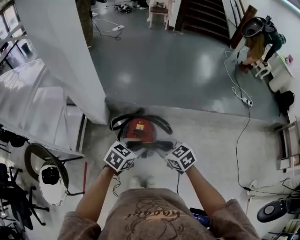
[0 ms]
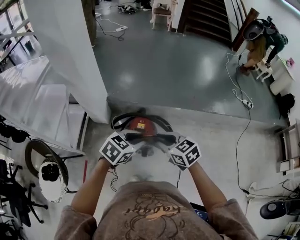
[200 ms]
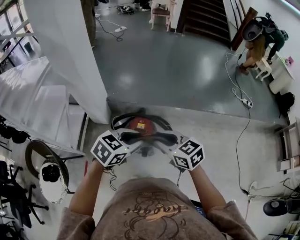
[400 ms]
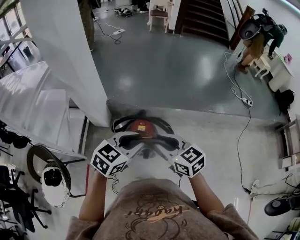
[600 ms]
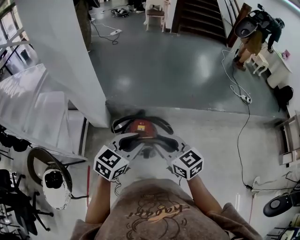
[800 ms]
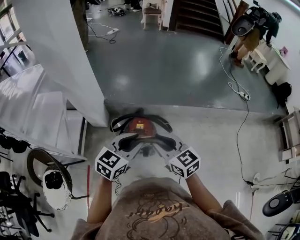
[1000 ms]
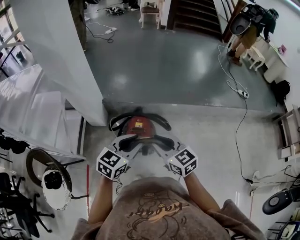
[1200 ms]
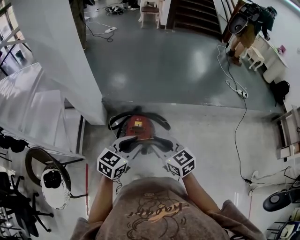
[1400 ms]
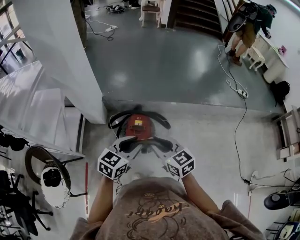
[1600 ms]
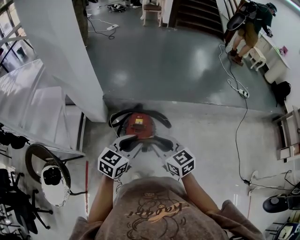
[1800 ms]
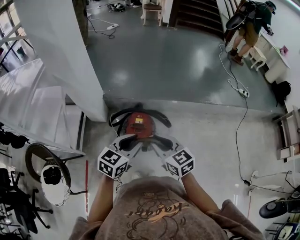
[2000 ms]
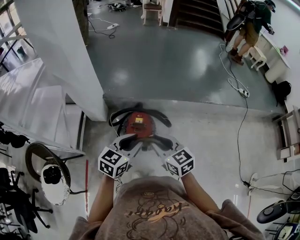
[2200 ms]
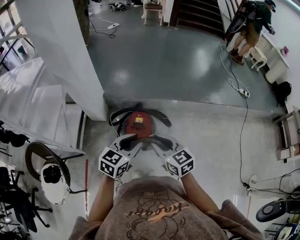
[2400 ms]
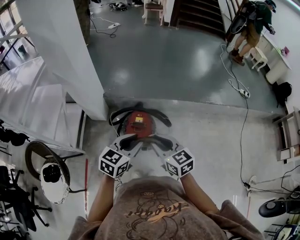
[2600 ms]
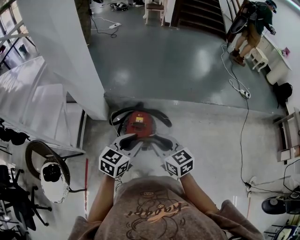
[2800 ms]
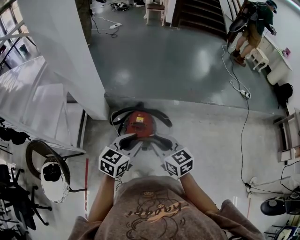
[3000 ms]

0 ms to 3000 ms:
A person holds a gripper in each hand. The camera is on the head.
0 ms to 1600 ms: The grippers both shift upward by some 5 cm.
1600 ms to 3000 ms: The grippers move only a little.

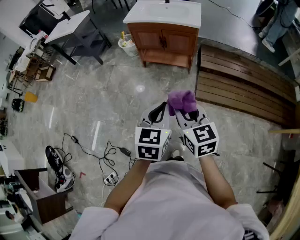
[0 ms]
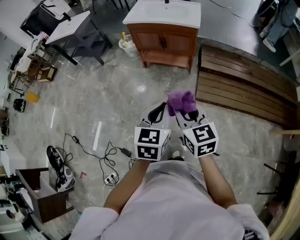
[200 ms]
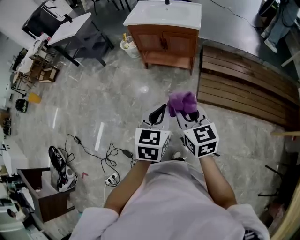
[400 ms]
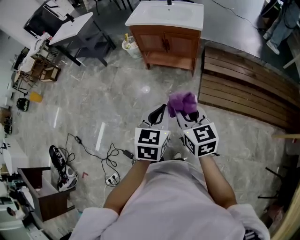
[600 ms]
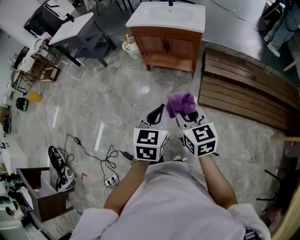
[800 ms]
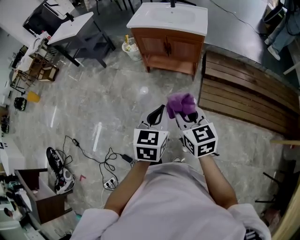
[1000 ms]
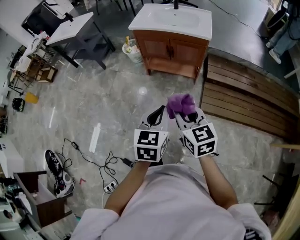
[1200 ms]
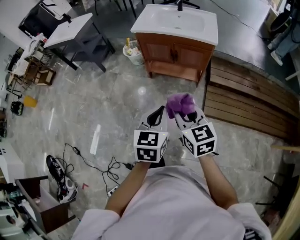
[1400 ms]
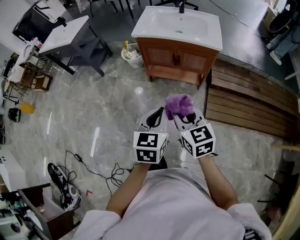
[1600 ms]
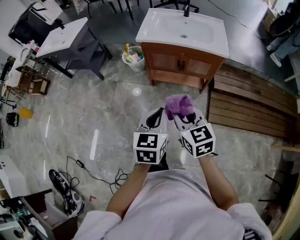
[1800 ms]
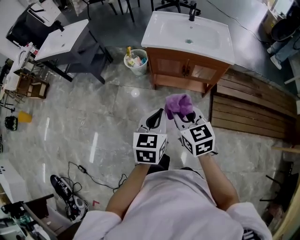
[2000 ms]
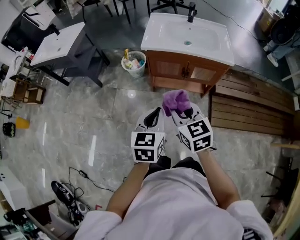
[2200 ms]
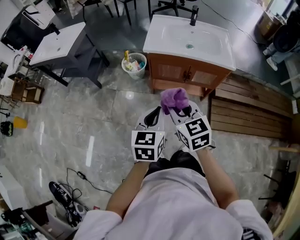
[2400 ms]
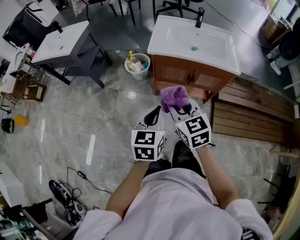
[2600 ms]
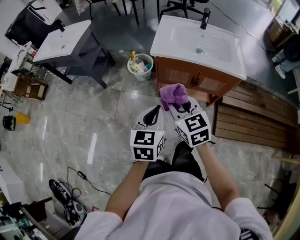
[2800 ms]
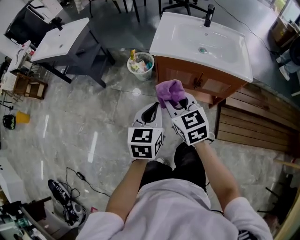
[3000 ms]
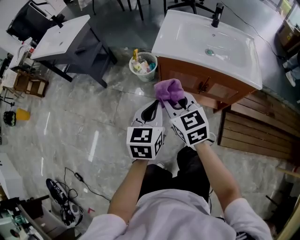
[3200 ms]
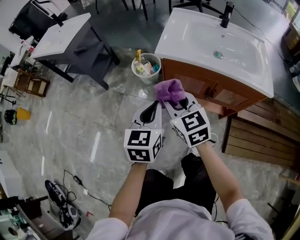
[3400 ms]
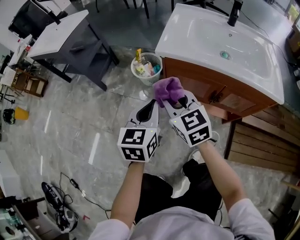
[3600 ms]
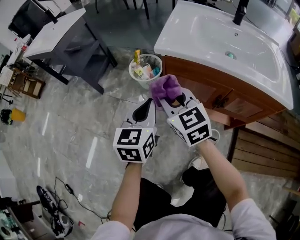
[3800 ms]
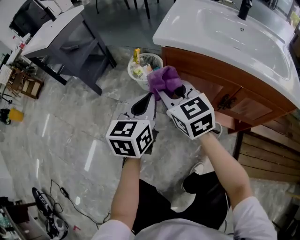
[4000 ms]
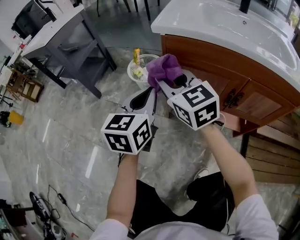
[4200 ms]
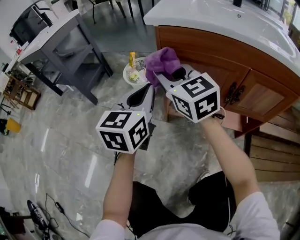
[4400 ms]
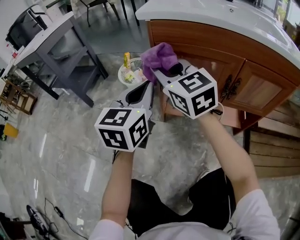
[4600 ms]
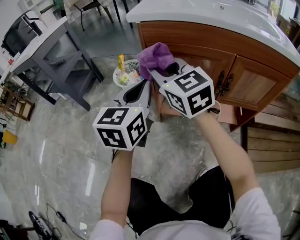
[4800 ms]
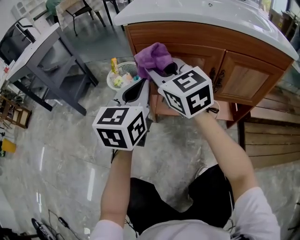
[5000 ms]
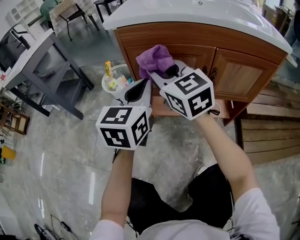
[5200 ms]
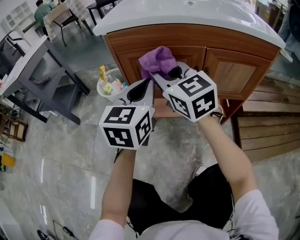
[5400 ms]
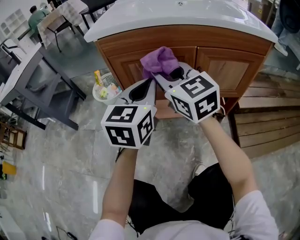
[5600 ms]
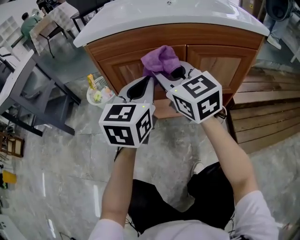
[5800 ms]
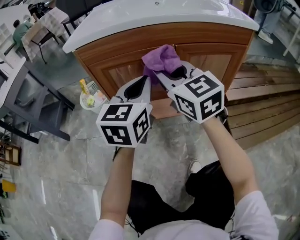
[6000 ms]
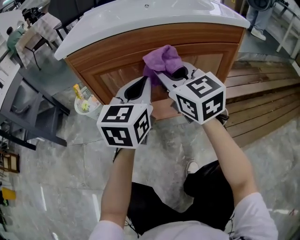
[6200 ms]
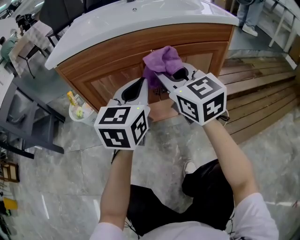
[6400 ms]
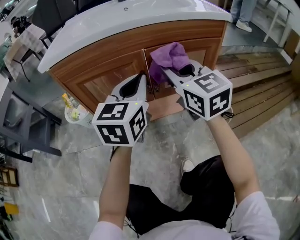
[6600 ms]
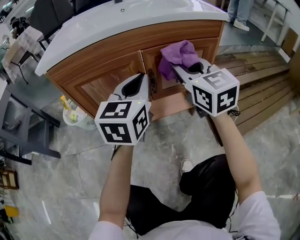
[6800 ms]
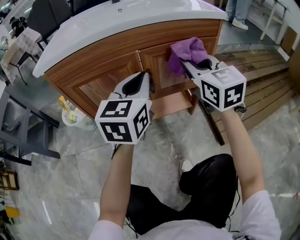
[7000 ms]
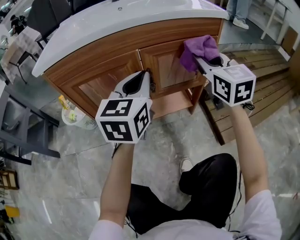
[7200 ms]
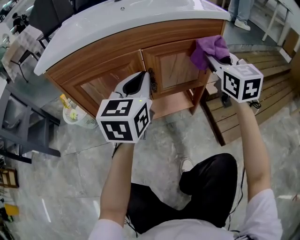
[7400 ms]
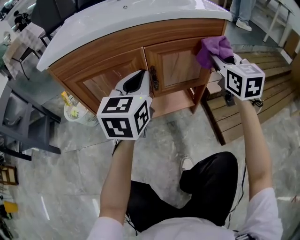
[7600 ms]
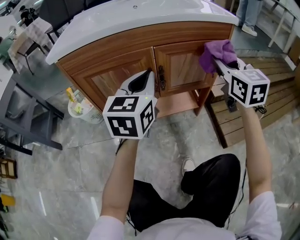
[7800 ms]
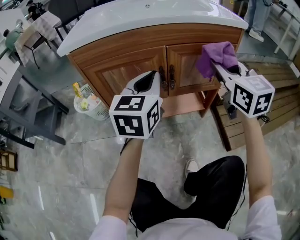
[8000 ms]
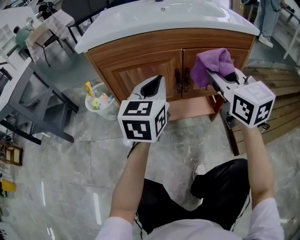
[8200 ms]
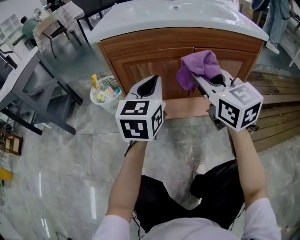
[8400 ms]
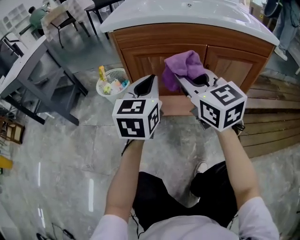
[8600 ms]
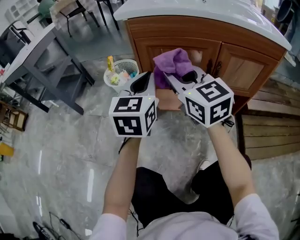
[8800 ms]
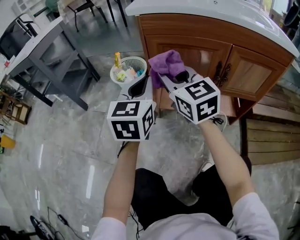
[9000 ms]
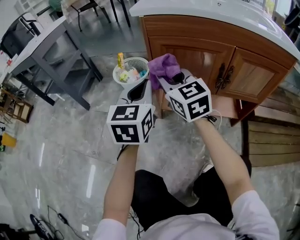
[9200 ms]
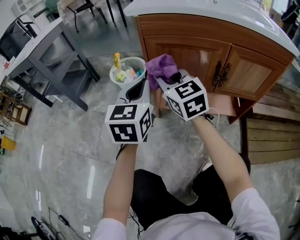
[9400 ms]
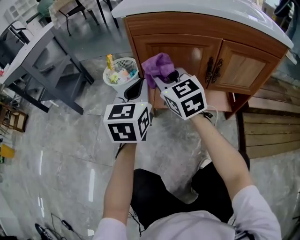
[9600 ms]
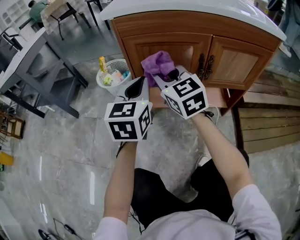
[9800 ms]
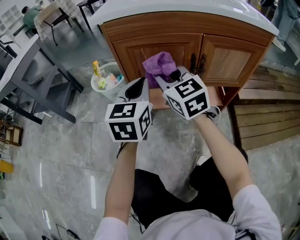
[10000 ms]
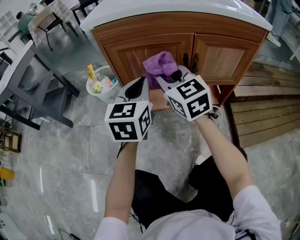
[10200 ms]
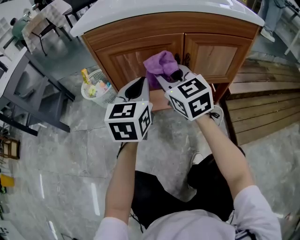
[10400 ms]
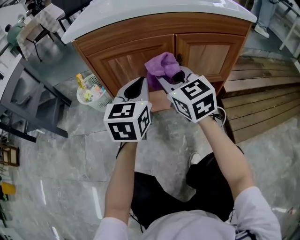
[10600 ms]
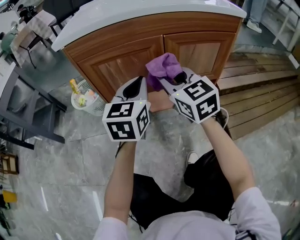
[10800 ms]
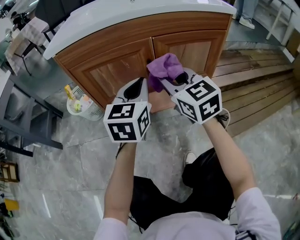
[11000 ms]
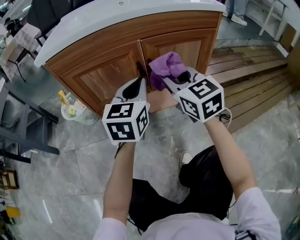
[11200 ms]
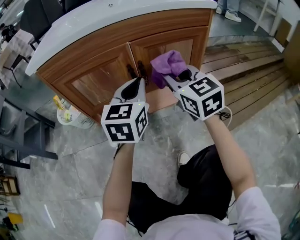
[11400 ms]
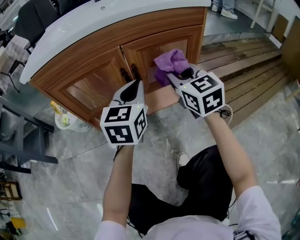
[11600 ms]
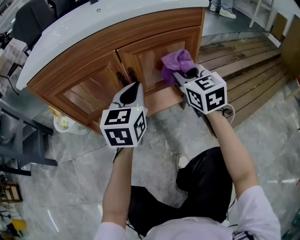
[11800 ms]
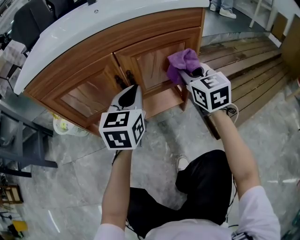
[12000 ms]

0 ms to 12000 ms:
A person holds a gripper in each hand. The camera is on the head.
0 ms to 1600 ms: The grippers both shift forward and to the left by approximately 25 cm.
1600 ms to 3000 ms: Both grippers move forward and to the left, approximately 30 cm.
3000 ms to 4400 ms: Both grippers travel together downward and forward, some 35 cm.
4400 ms to 6000 ms: Both grippers travel together to the right, approximately 20 cm. The right gripper changes its angle by some 20 degrees. Meanwhile the left gripper rotates some 20 degrees.
6000 ms to 7600 ms: The left gripper moves to the right, about 10 cm; the right gripper heads to the right, covering approximately 30 cm, and changes its angle by about 30 degrees.
7600 ms to 9000 ms: The left gripper shifts by some 25 cm, and rotates about 30 degrees. The right gripper shifts by about 40 cm, and changes its angle by roughly 40 degrees.
9000 ms to 10400 ms: Both grippers travel together to the right, some 10 cm.
10400 ms to 12000 ms: The left gripper heads to the right, covering approximately 15 cm. The right gripper heads to the right, covering approximately 30 cm, and changes its angle by some 30 degrees.

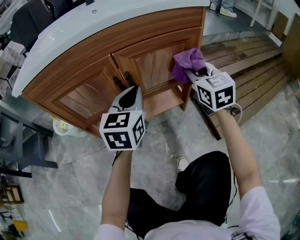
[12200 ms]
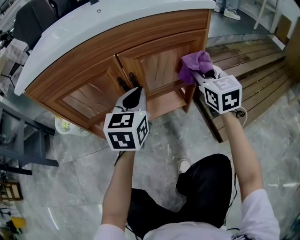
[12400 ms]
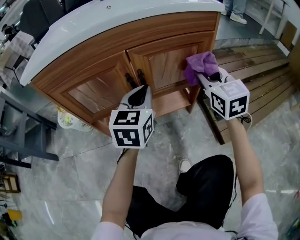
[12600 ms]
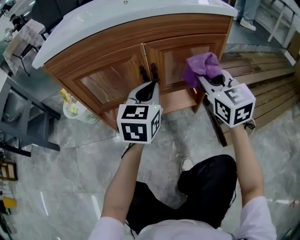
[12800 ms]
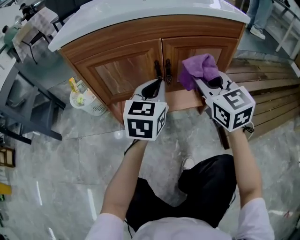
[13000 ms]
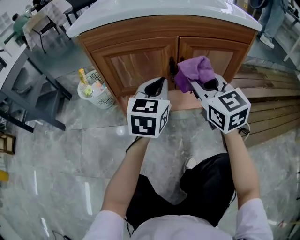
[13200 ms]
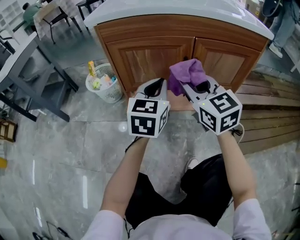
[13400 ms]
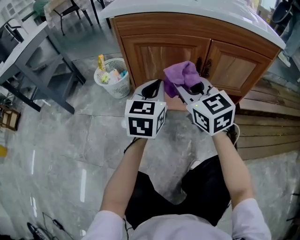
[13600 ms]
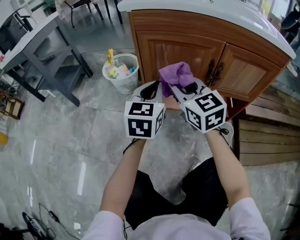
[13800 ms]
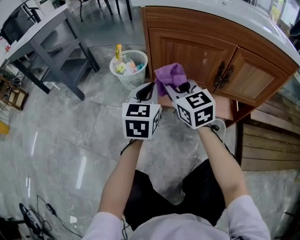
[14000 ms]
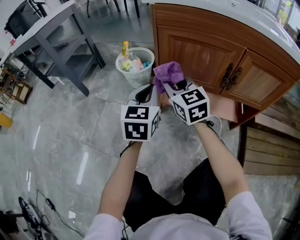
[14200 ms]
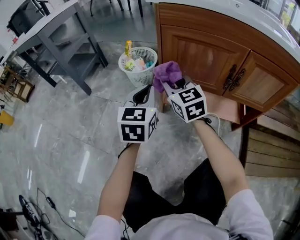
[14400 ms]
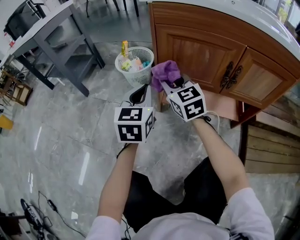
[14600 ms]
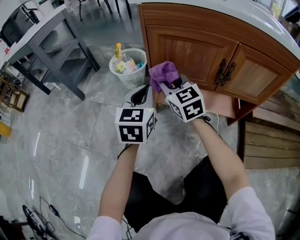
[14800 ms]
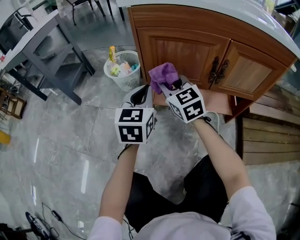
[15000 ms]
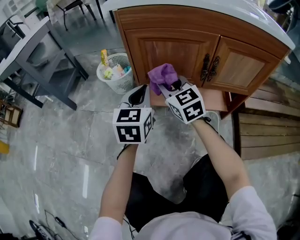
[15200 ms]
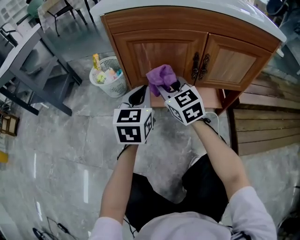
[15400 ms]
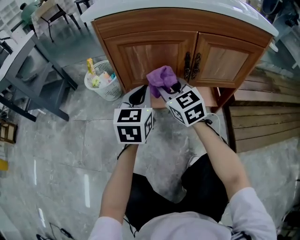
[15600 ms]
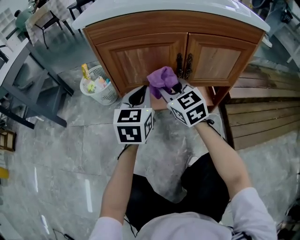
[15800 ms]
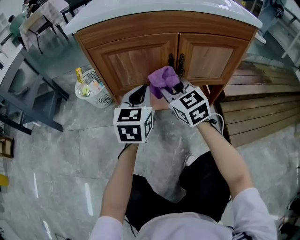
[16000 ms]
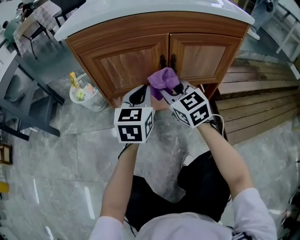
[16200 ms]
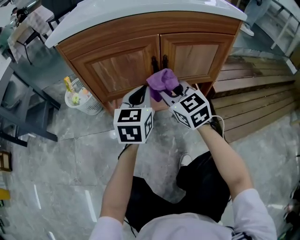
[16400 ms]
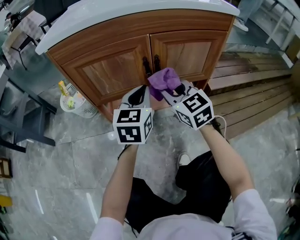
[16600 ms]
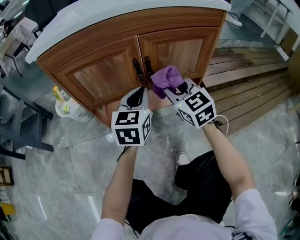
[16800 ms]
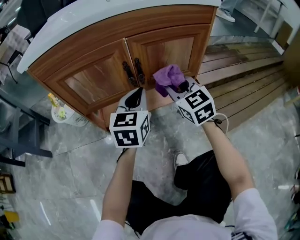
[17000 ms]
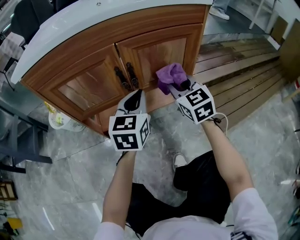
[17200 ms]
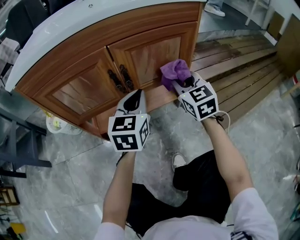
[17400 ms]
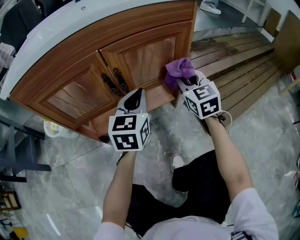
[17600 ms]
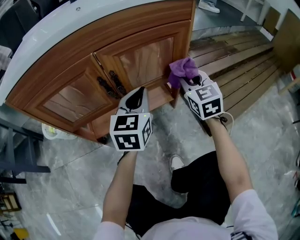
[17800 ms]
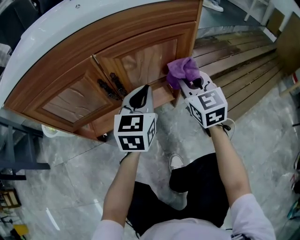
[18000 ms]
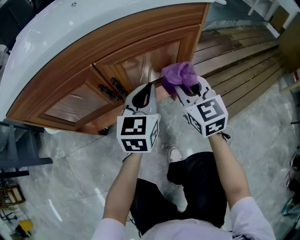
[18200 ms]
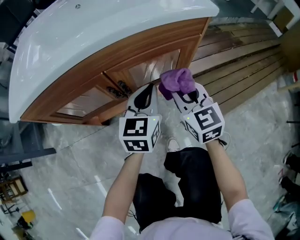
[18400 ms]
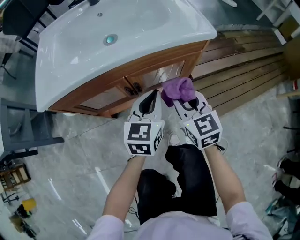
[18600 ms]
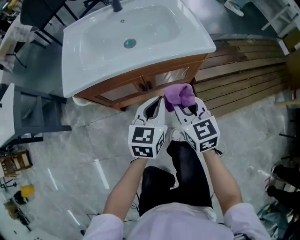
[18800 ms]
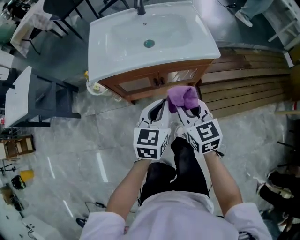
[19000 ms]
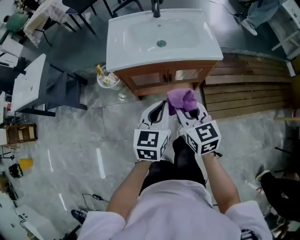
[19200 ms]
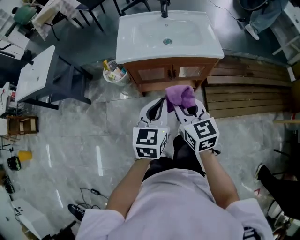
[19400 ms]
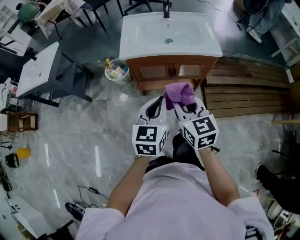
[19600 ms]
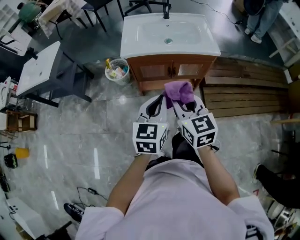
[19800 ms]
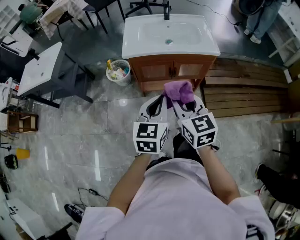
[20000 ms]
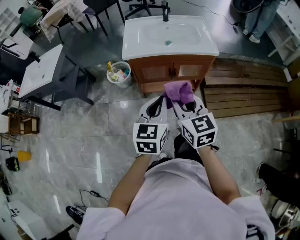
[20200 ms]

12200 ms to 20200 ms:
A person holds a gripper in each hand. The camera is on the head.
12200 ms to 13800 ms: The right gripper moves approximately 40 cm, and rotates approximately 40 degrees. The left gripper shifts by some 25 cm, and turns by some 20 degrees.
13800 ms to 15400 ms: The right gripper travels downward by some 5 cm, and reaches some 10 cm to the left, then returns; the left gripper travels to the left and back again, about 10 cm each way.
15400 ms to 17000 ms: Both grippers move to the right, about 20 cm. The left gripper turns by roughly 20 degrees. Meanwhile the right gripper turns by approximately 20 degrees.
17000 ms to 18600 ms: The right gripper goes roughly 15 cm upward. Meanwhile the left gripper moves upward and to the right, about 15 cm.
18600 ms to 20200 ms: The two grippers go approximately 40 cm upward, backward and to the left.
